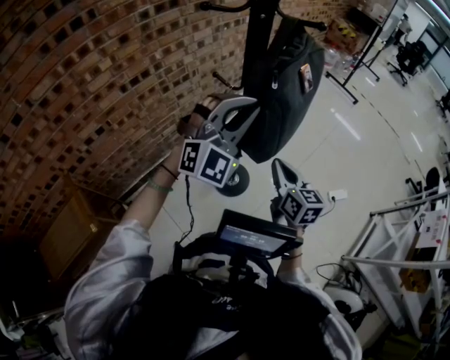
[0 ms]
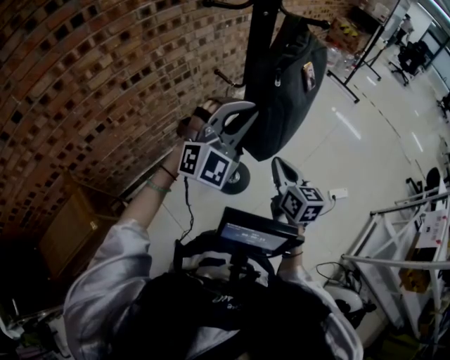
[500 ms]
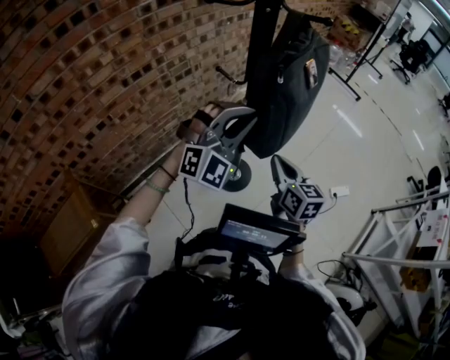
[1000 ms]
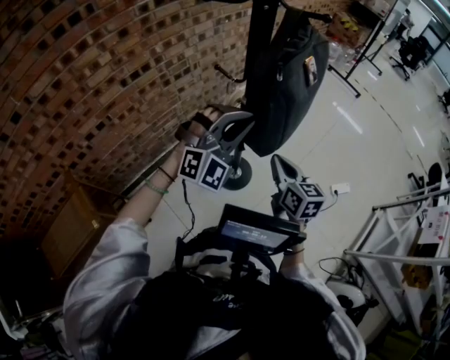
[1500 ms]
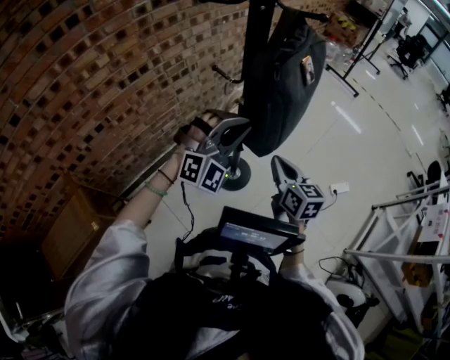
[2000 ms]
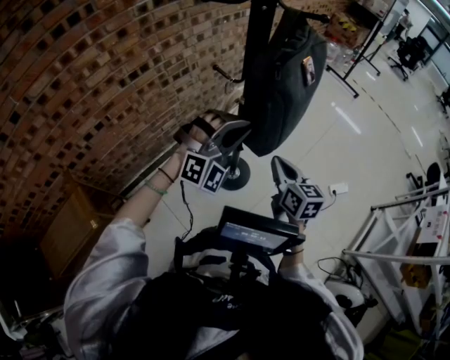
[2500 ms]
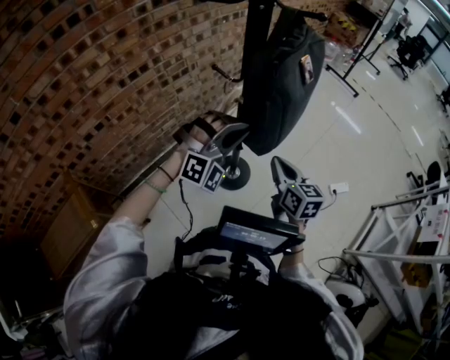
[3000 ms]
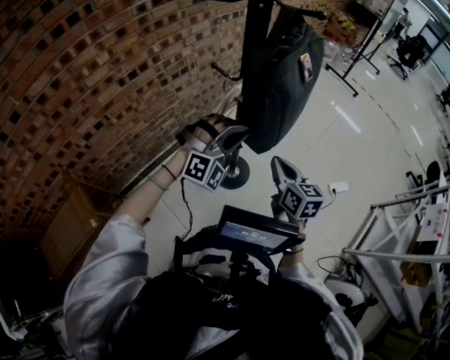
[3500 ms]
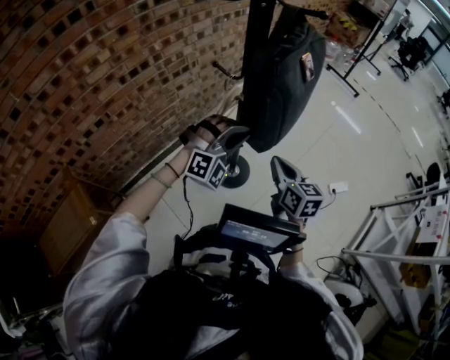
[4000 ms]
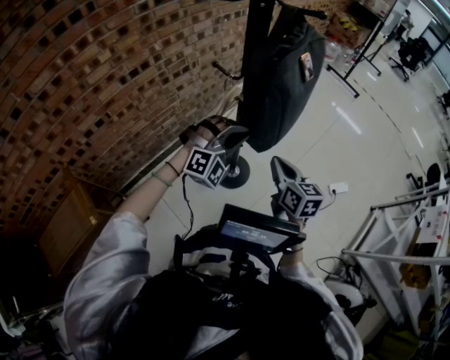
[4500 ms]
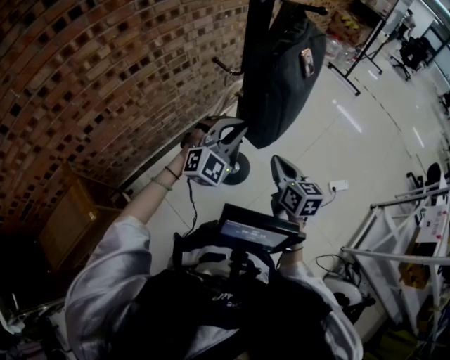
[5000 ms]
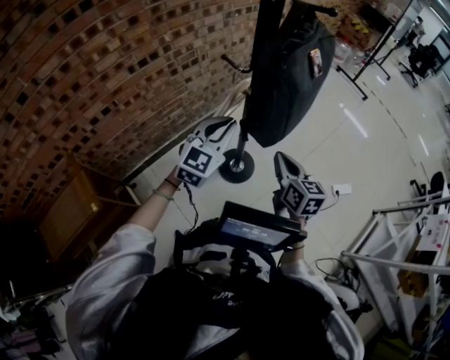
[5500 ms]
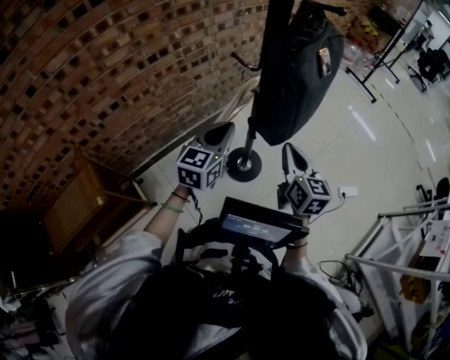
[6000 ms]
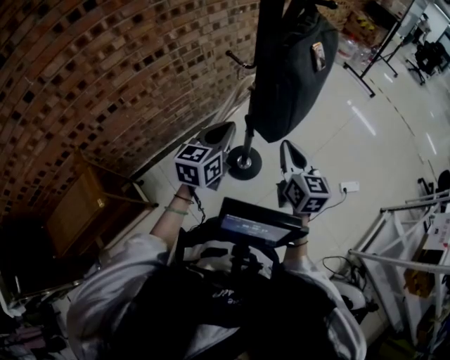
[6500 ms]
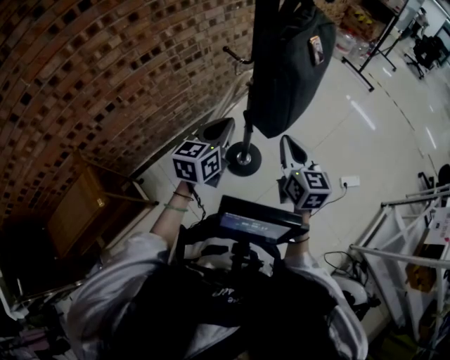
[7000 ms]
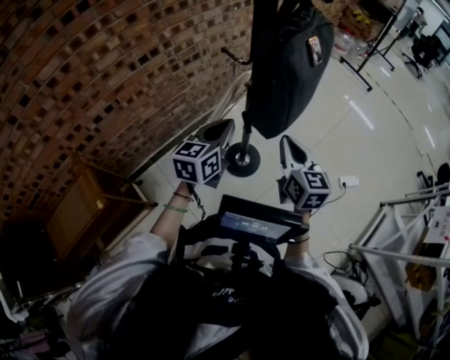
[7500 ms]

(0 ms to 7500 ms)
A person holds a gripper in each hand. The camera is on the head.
0 ms - 2000 ms: The left gripper is displaced downward by approximately 10 cm.
2000 ms - 4000 ms: The left gripper shifts roughly 5 cm downward.
4000 ms - 5500 ms: The left gripper heads to the left, covering approximately 5 cm, and twists about 60 degrees counterclockwise, seen from behind.
5500 ms - 7500 ms: The left gripper rotates approximately 30 degrees.

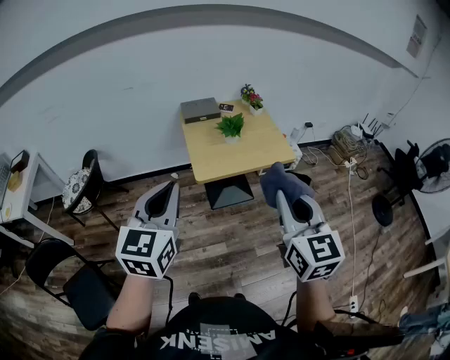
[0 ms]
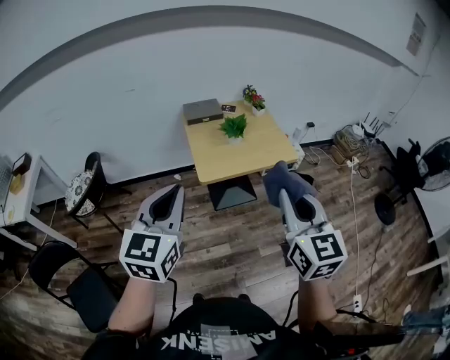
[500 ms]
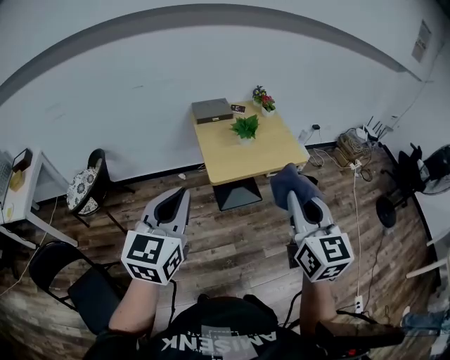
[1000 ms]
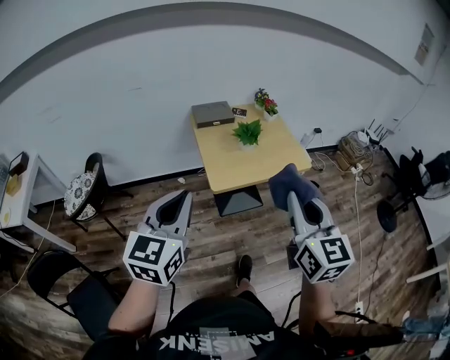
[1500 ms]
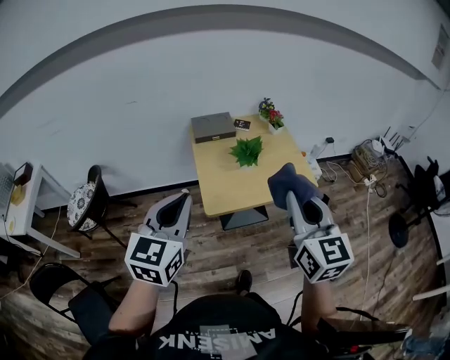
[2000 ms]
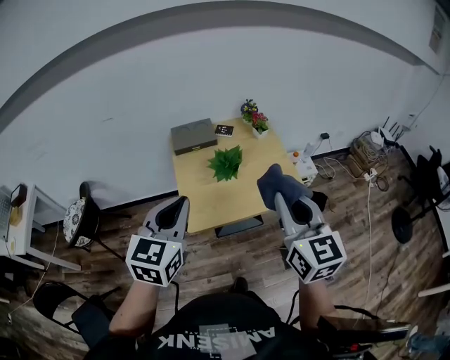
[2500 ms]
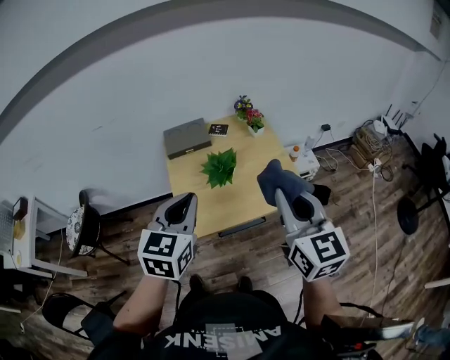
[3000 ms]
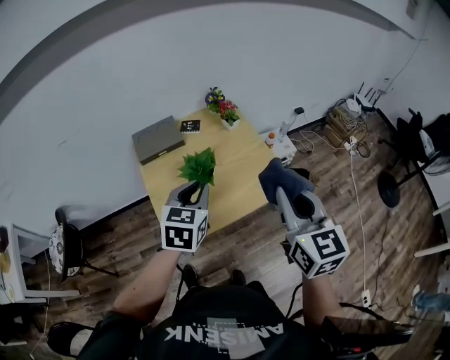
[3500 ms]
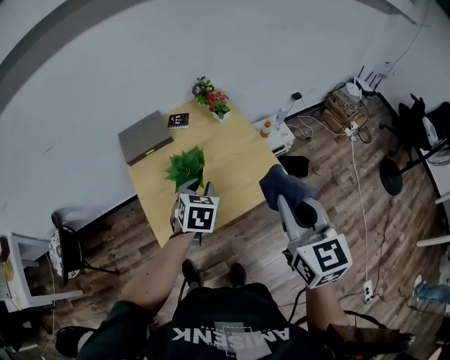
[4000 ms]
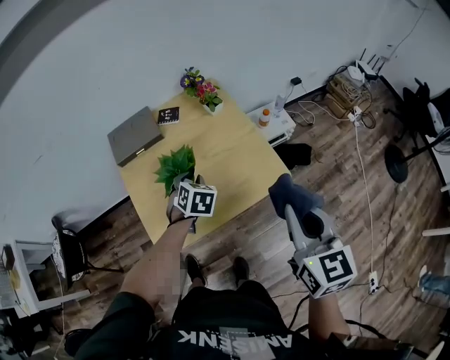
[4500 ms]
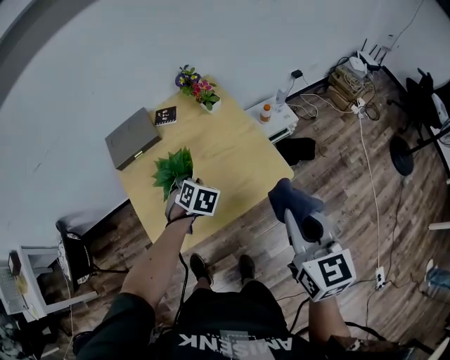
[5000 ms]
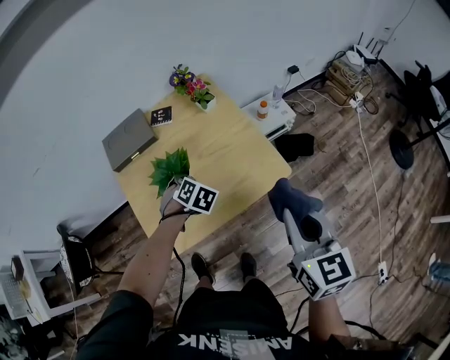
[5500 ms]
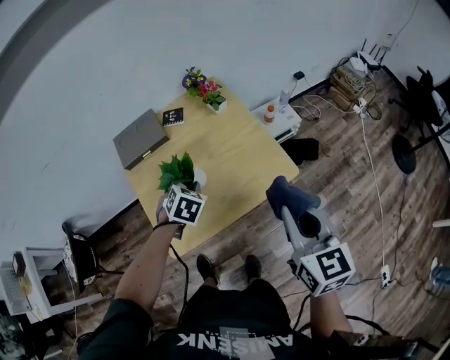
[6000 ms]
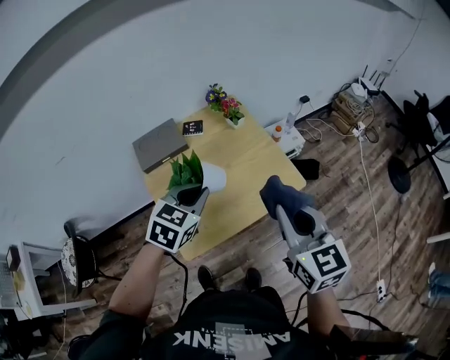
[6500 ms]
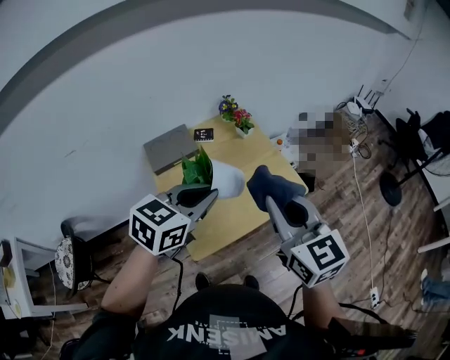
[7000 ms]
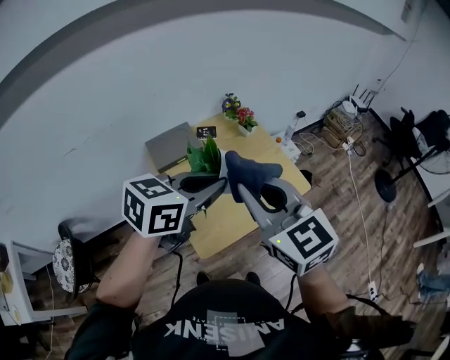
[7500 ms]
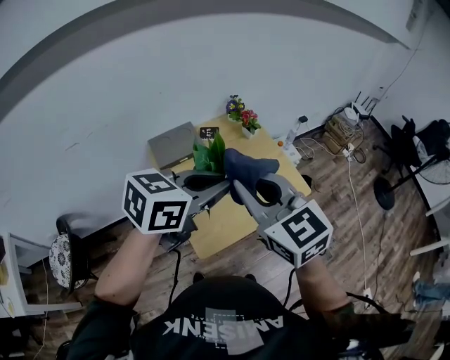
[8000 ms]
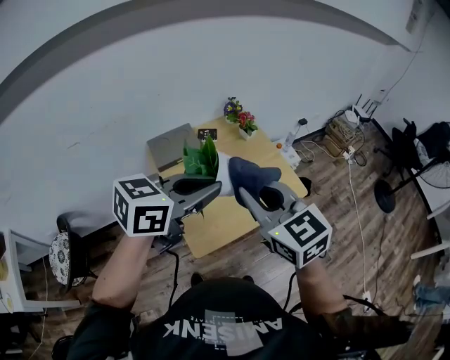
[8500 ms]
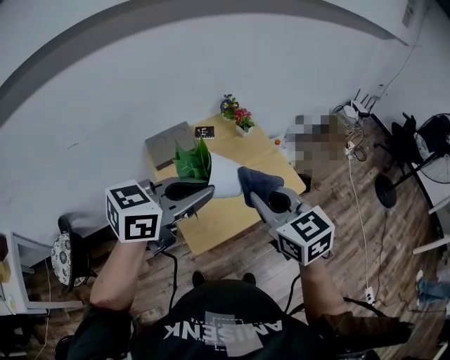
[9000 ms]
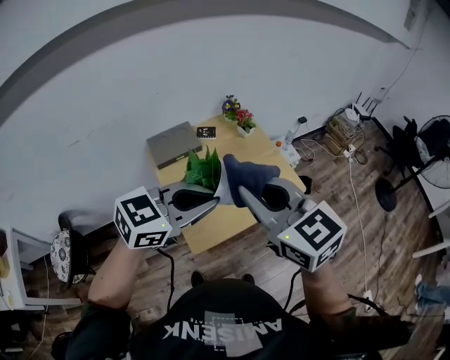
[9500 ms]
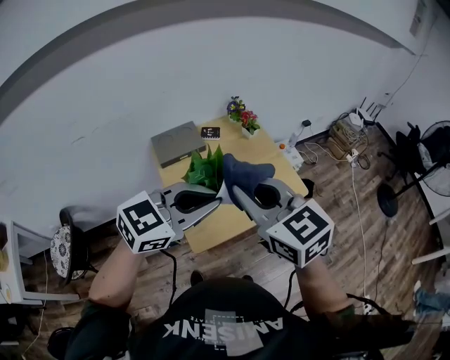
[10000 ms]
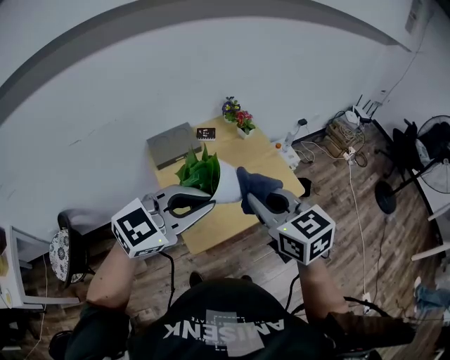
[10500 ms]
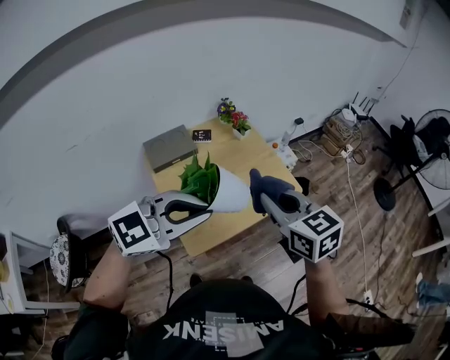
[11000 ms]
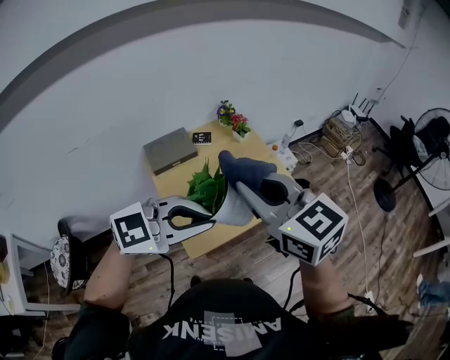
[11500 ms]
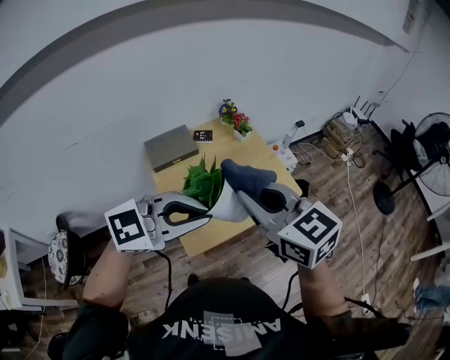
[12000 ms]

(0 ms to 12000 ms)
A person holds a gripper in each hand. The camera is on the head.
0 ms - 2000 ms: The two grippers go roughly 20 cm forward.
2000 ms - 4000 ms: The right gripper heads forward and to the right, covering about 25 cm; the left gripper travels forward, to the right and downward by approximately 50 cm, tilts its fingers about 40 degrees downward, and opens up.
4000 ms - 6000 ms: Both grippers move downward, some 5 cm. The left gripper turns by about 20 degrees.
6000 ms - 8000 ms: The left gripper is displaced upward and backward by some 35 cm, and points its fingers approximately 40 degrees further upward. The right gripper shifts approximately 35 cm to the left and upward, and turns by about 30 degrees.
8000 ms - 10000 ms: The left gripper travels backward by about 5 cm, and rotates roughly 20 degrees.
10000 ms - 12000 ms: The right gripper travels downward and back again, about 5 cm each way. Meanwhile the left gripper swivels approximately 20 degrees.

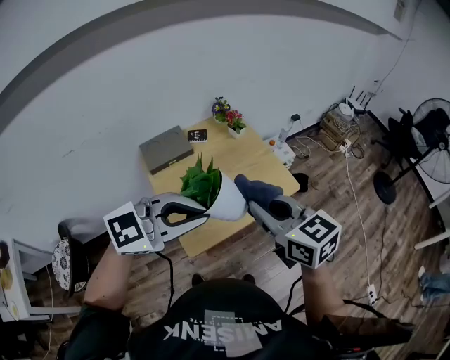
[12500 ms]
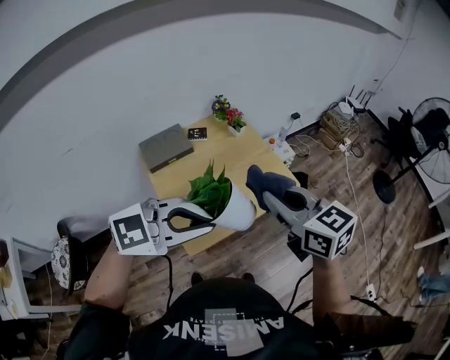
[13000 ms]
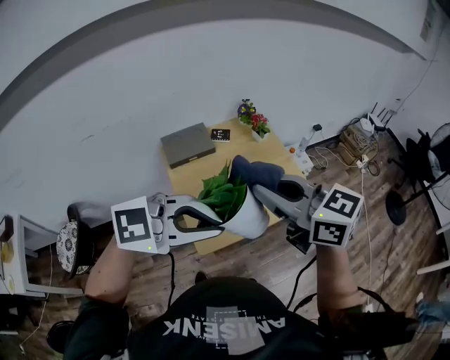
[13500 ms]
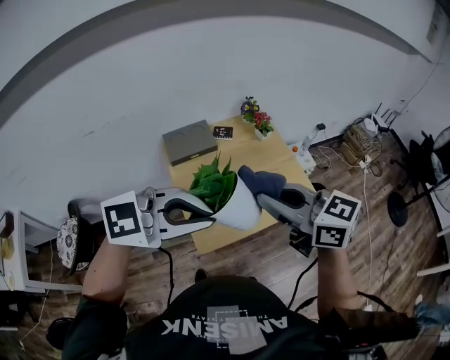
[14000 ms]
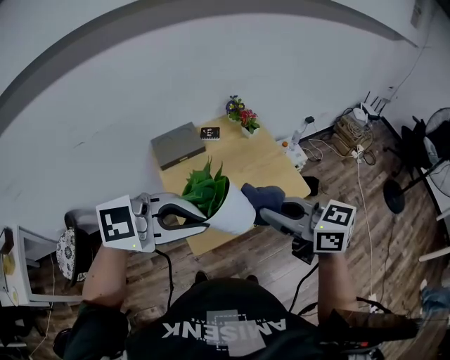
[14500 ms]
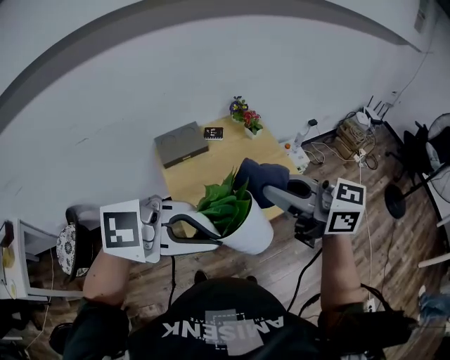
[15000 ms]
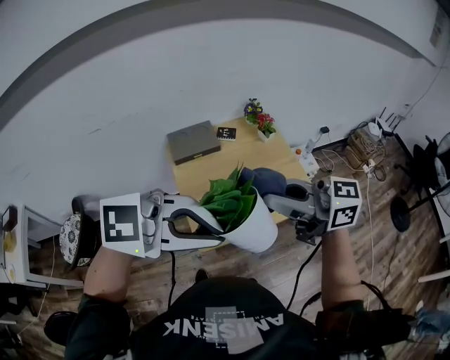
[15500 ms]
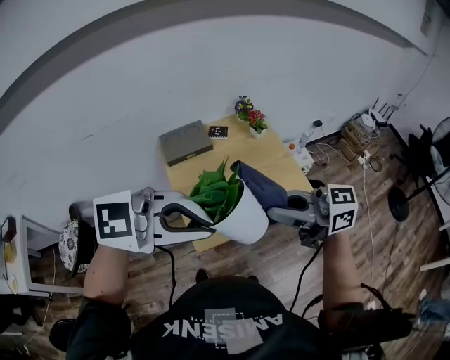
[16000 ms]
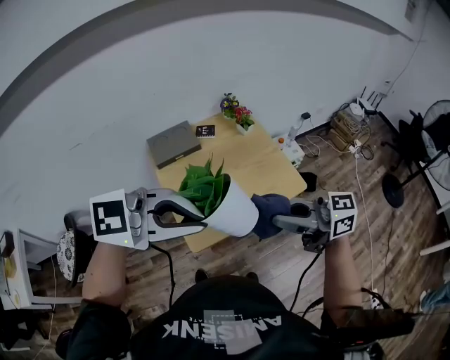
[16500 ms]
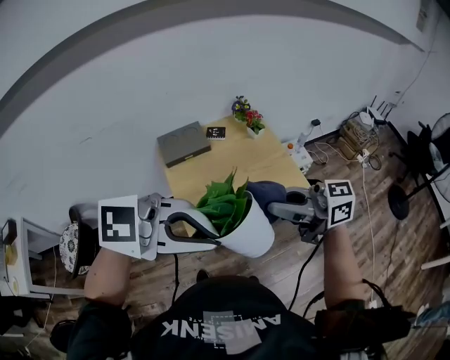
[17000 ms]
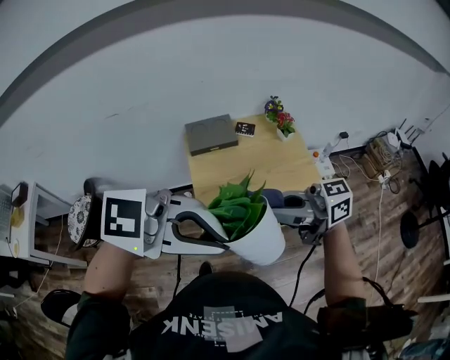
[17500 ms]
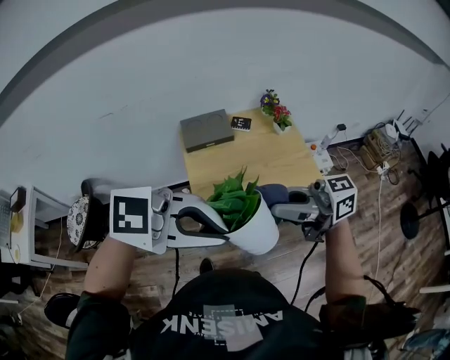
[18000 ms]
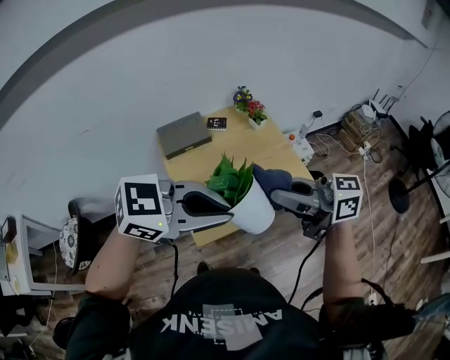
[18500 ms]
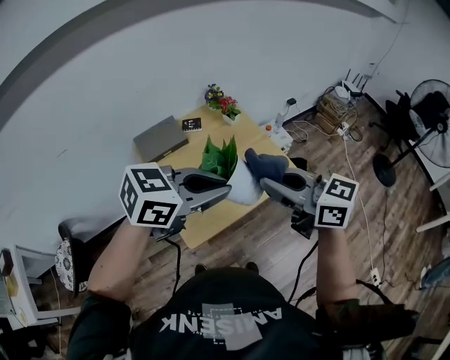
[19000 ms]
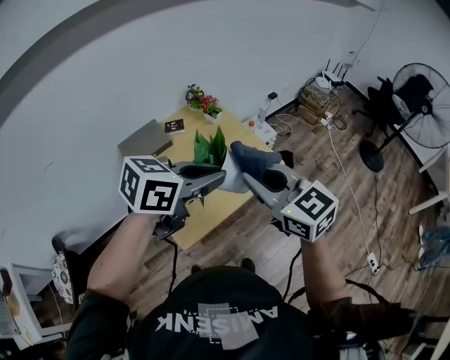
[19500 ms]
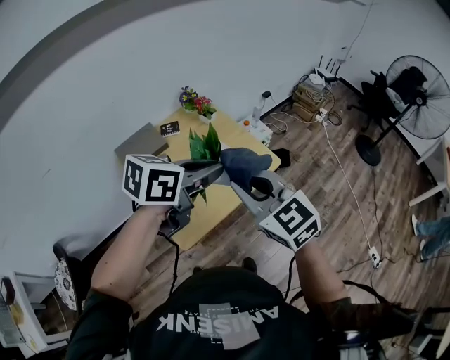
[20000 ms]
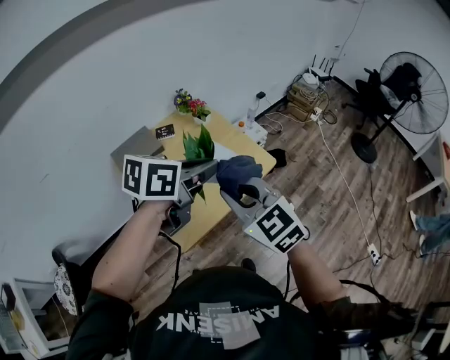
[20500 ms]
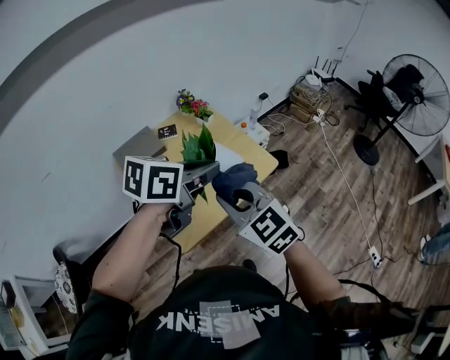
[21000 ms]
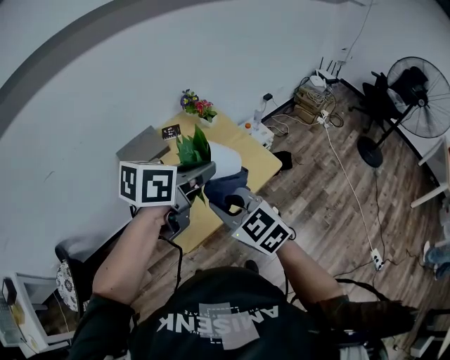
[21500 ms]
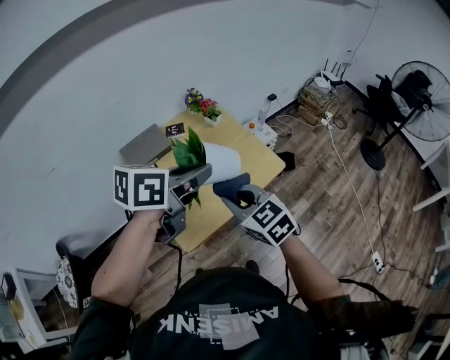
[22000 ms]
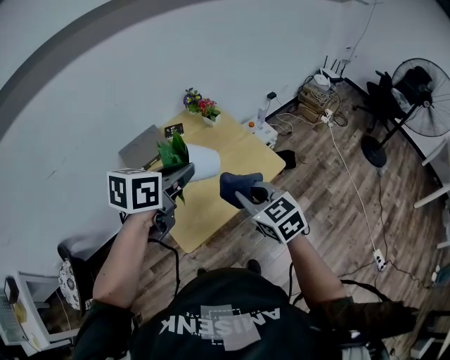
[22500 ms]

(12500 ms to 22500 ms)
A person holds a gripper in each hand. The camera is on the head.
12500 ms - 14500 ms: The right gripper reaches about 10 cm upward, then returns, and swivels some 20 degrees.
14500 ms - 16500 ms: The right gripper travels upward and back again, about 5 cm each way, and rotates roughly 20 degrees.
16500 ms - 18500 ms: The left gripper changes its angle by approximately 20 degrees. The right gripper ends up roughly 5 cm from where it was.
18500 ms - 20500 ms: The right gripper travels downward by approximately 5 cm, and rotates some 60 degrees. The left gripper moves approximately 15 cm, and changes its angle by some 30 degrees.
20500 ms - 22500 ms: The left gripper heads to the left, covering some 10 cm. Meanwhile the right gripper travels downward by roughly 10 cm.
